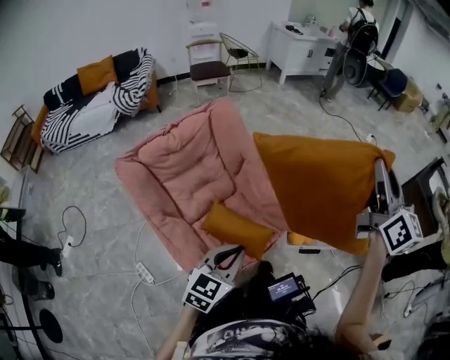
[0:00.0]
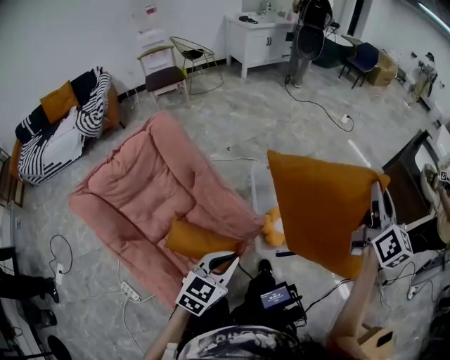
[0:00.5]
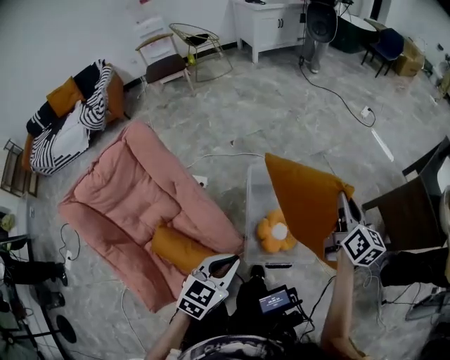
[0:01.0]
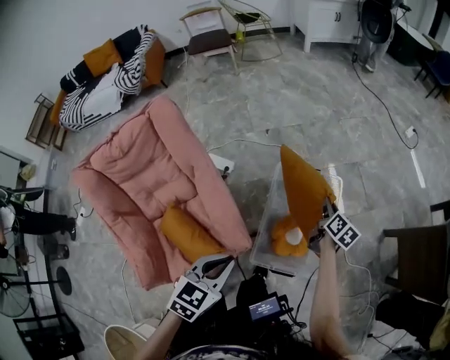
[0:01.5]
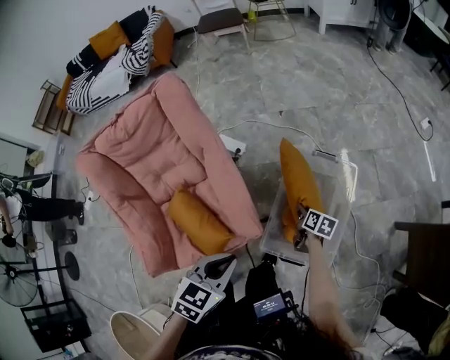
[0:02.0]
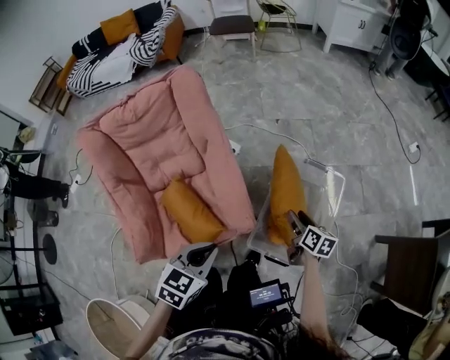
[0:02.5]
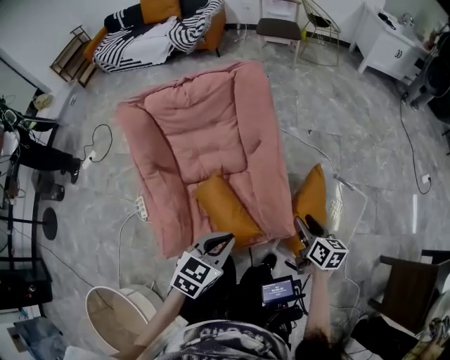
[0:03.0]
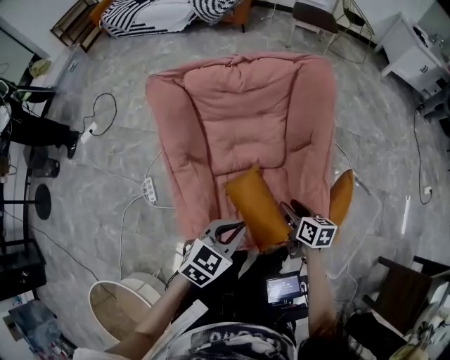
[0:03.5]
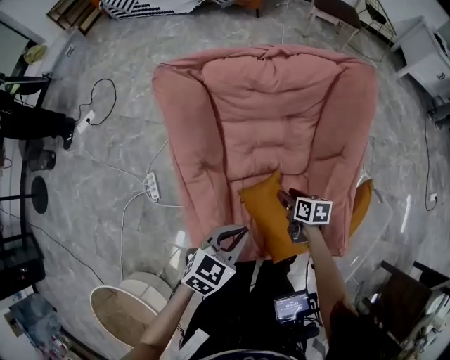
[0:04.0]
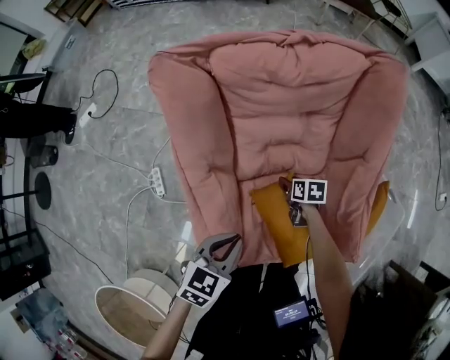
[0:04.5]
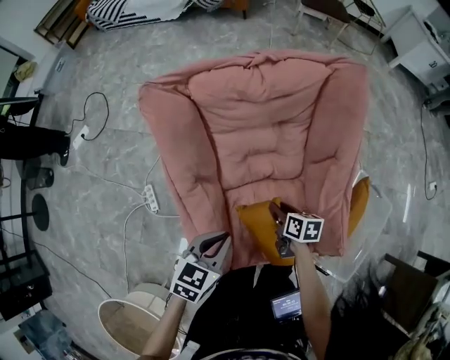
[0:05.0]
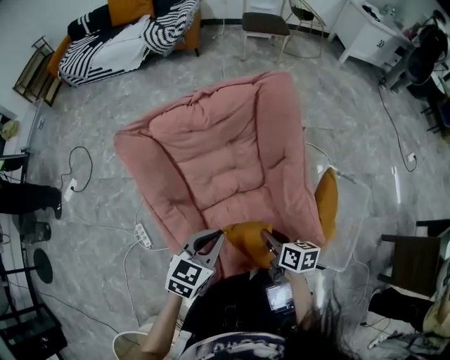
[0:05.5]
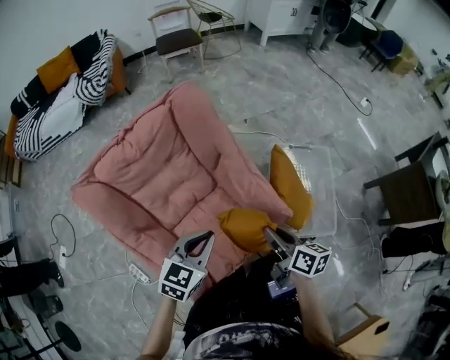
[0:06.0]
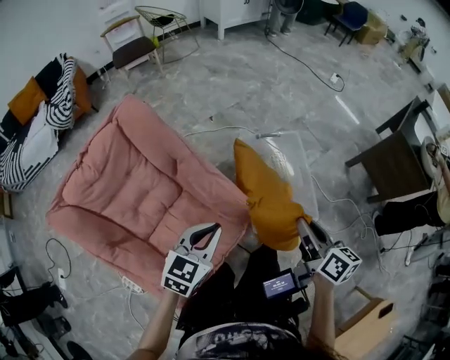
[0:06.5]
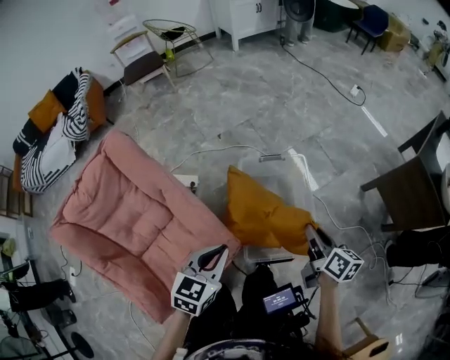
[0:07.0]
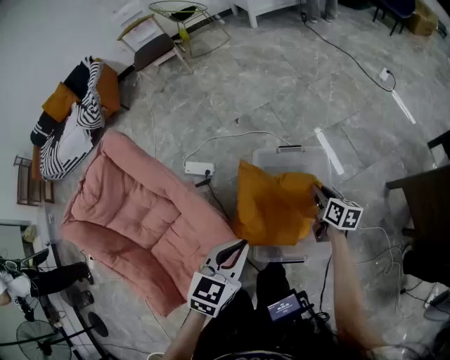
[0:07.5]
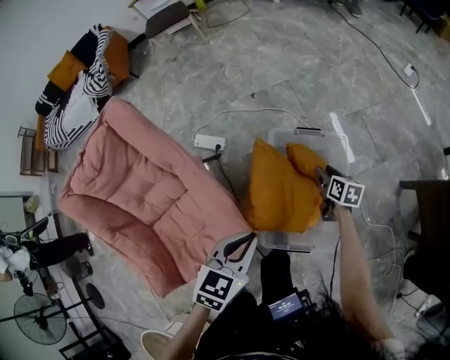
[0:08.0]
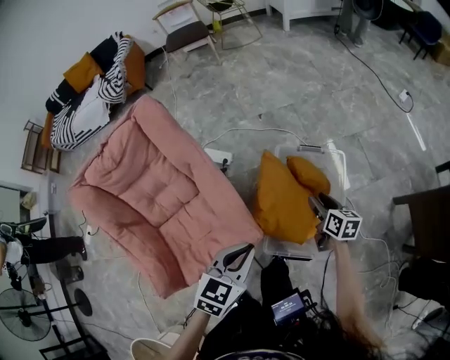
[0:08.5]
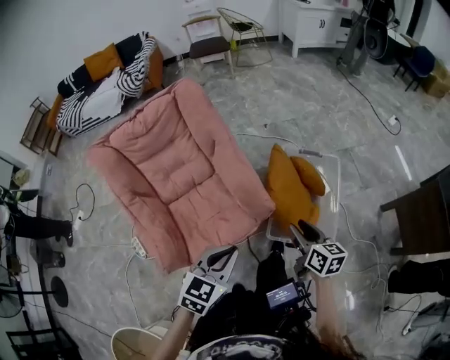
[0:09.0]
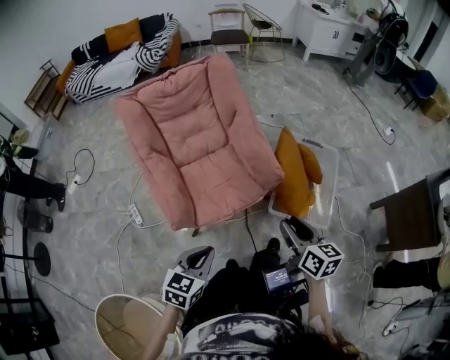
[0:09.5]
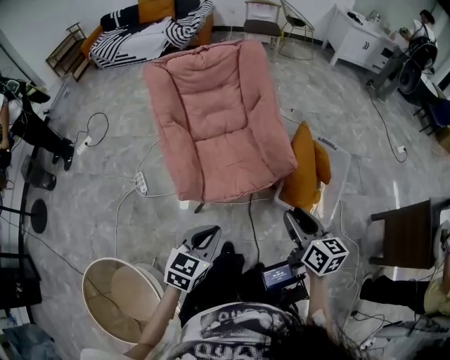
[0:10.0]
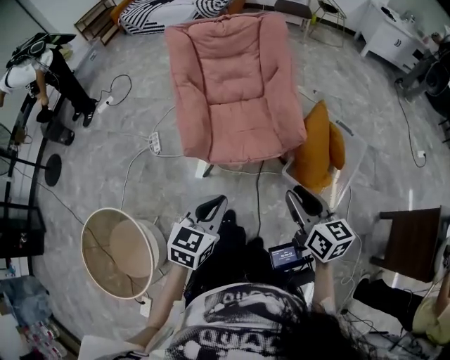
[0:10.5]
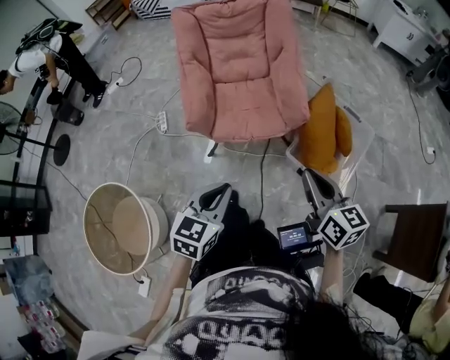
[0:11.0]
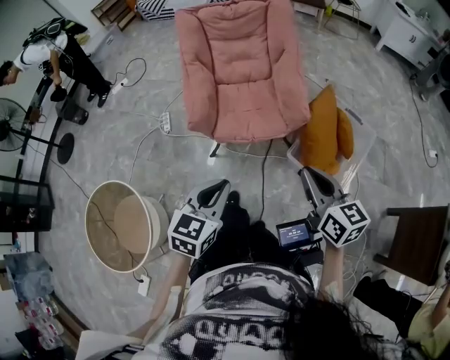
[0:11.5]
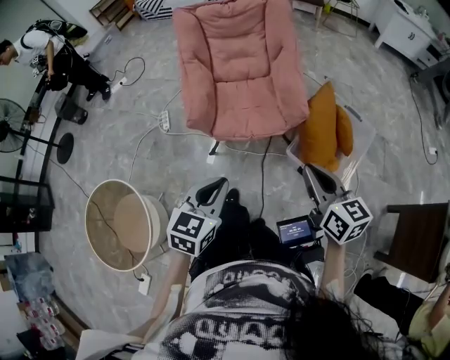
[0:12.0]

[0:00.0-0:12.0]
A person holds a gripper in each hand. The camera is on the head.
0:00.0 to 0:02.0: The right gripper is displaced downward by some 60 cm, and tips its fingers downward by about 60 degrees. Meanwhile the left gripper shifts by roughly 35 cm, and swivels about 30 degrees.
0:02.0 to 0:04.0: Both grippers are carried to the left, roughly 50 cm. The right gripper changes its angle by about 40 degrees, and opens its fingers.
0:04.0 to 0:06.0: The left gripper travels upward by some 10 cm, and turns by about 30 degrees. The right gripper travels upward by some 25 cm, changes its angle by roughly 50 degrees, and closes.
0:06.0 to 0:08.0: The two grippers travel together, to the right and forward, roughly 50 cm. The right gripper moves downward, approximately 25 cm, changes its angle by about 20 degrees, and opens.
0:08.0 to 0:10.0: The pair of grippers is taken backward and to the left, about 60 cm. The right gripper heads upward, covering about 30 cm, and rotates roughly 40 degrees, while the left gripper turns by some 30 degrees.
0:10.0 to 0:12.0: The grippers both shift backward and to the right by some 10 cm. The right gripper rotates some 20 degrees, and closes.
